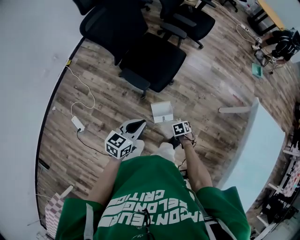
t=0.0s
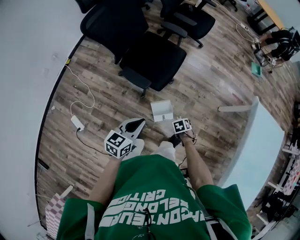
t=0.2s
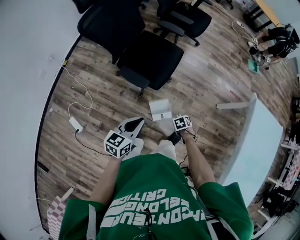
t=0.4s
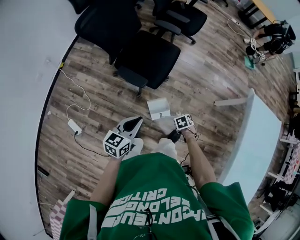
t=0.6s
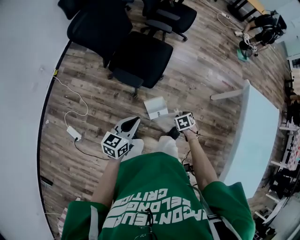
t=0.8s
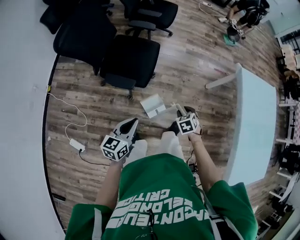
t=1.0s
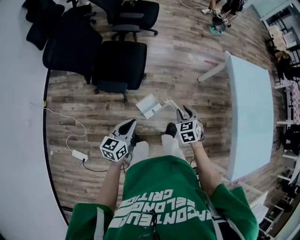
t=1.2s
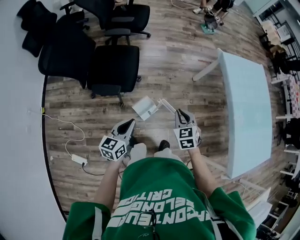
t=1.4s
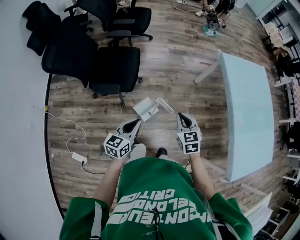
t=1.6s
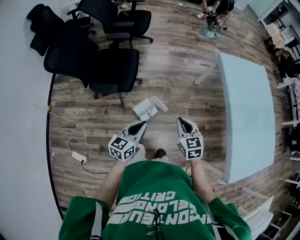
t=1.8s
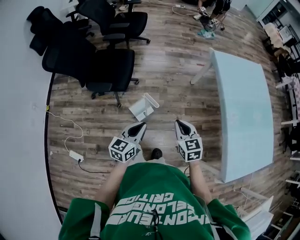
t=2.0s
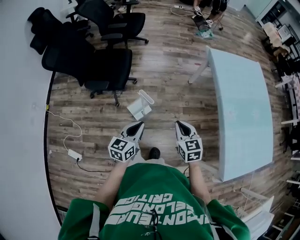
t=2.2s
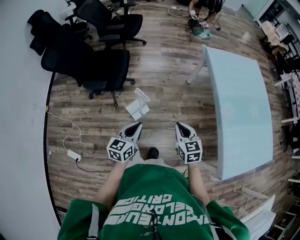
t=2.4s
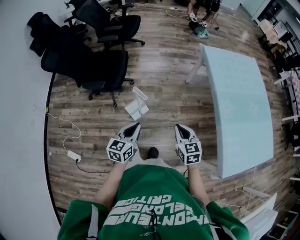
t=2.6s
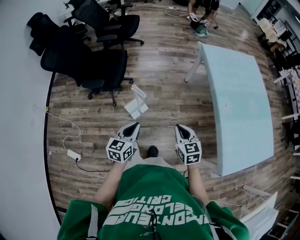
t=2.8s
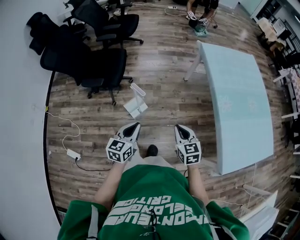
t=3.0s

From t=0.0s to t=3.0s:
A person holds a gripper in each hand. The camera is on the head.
From t=0.0s to t=1.6s: The left gripper moves roughly 10 cm; the right gripper goes approximately 30 cm upward, angles its fingers upward, by roughly 50 degrees, and closes up.
From t=1.6s to t=3.0s: The two grippers go about 25 cm to the right and backward.

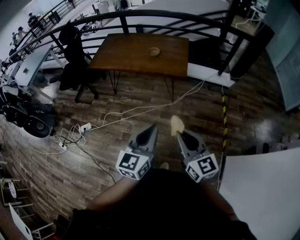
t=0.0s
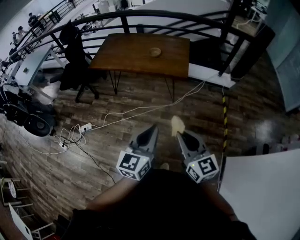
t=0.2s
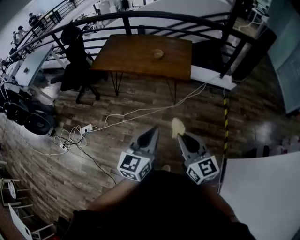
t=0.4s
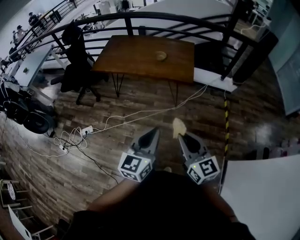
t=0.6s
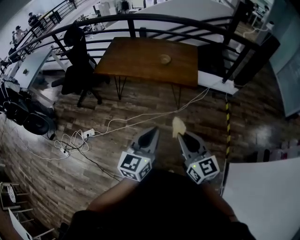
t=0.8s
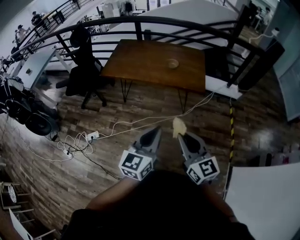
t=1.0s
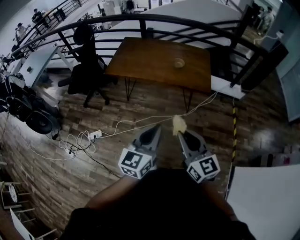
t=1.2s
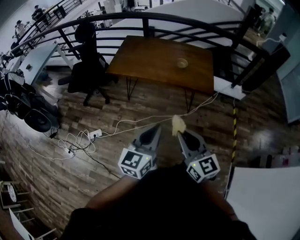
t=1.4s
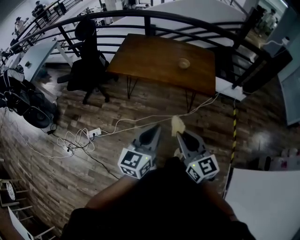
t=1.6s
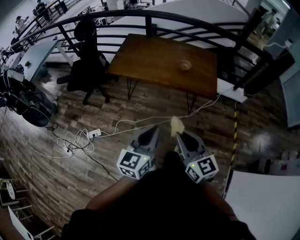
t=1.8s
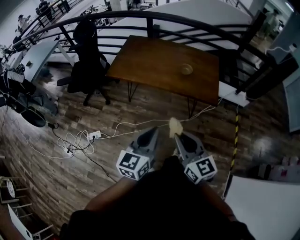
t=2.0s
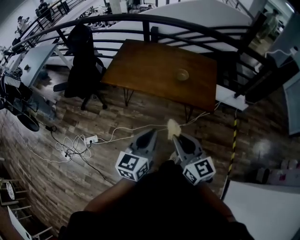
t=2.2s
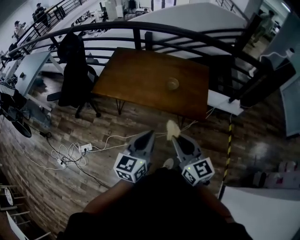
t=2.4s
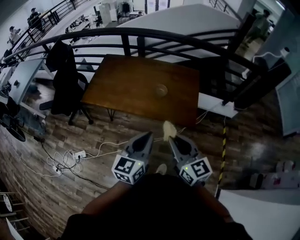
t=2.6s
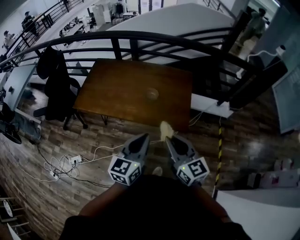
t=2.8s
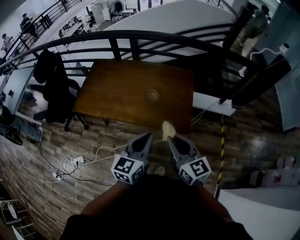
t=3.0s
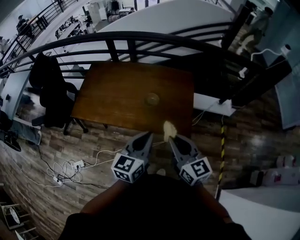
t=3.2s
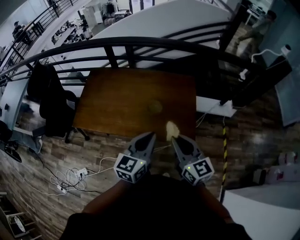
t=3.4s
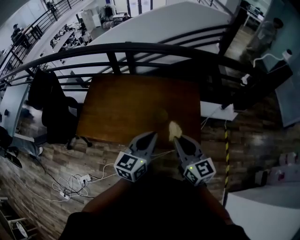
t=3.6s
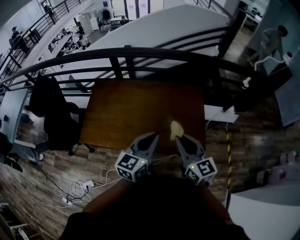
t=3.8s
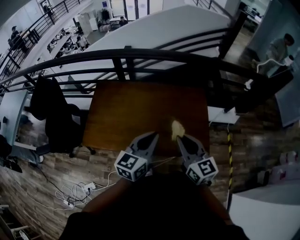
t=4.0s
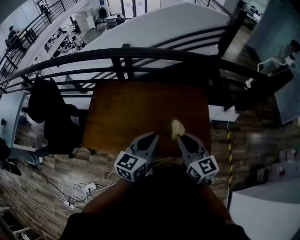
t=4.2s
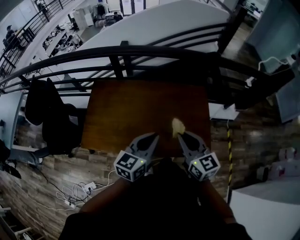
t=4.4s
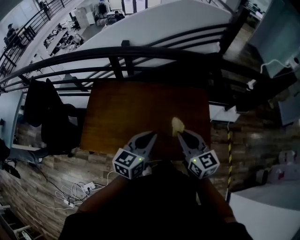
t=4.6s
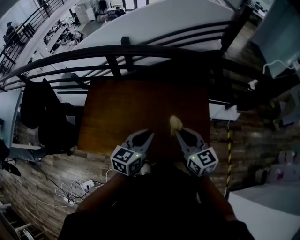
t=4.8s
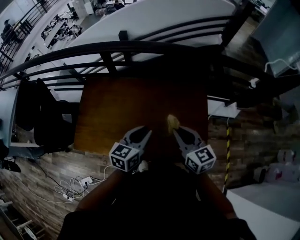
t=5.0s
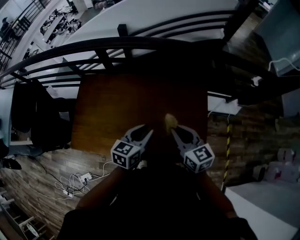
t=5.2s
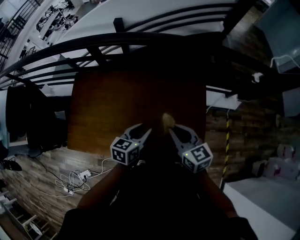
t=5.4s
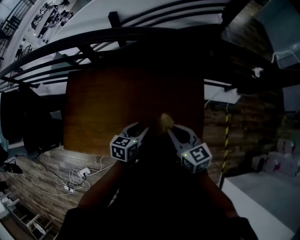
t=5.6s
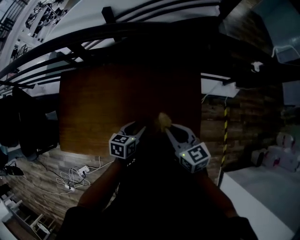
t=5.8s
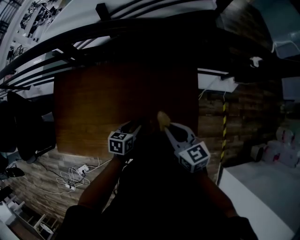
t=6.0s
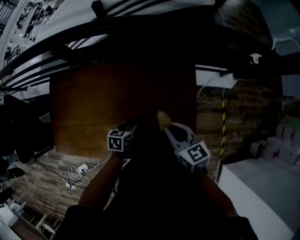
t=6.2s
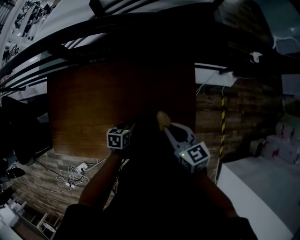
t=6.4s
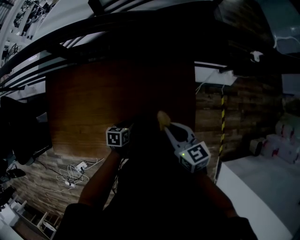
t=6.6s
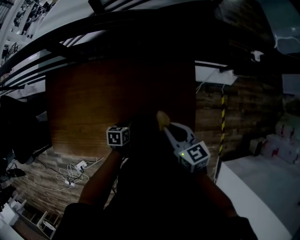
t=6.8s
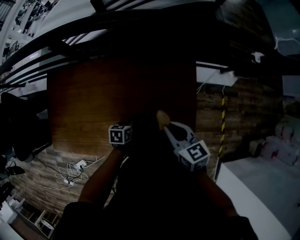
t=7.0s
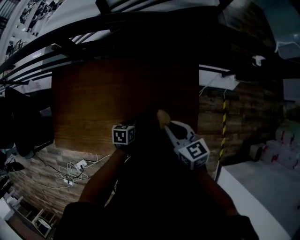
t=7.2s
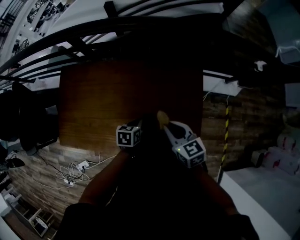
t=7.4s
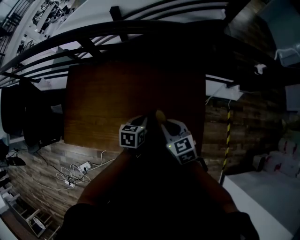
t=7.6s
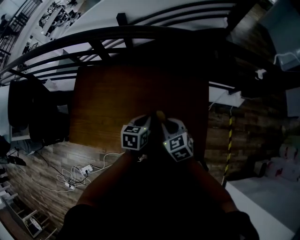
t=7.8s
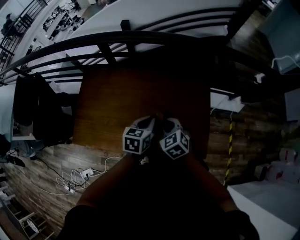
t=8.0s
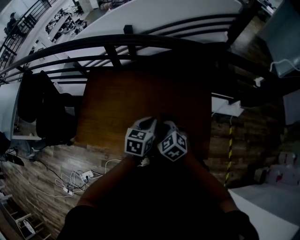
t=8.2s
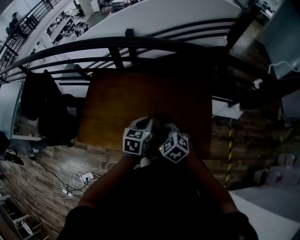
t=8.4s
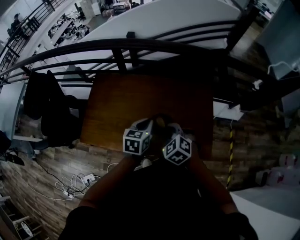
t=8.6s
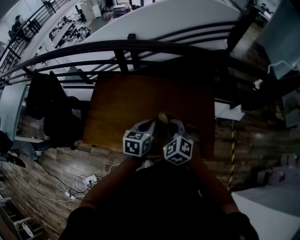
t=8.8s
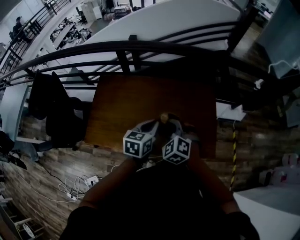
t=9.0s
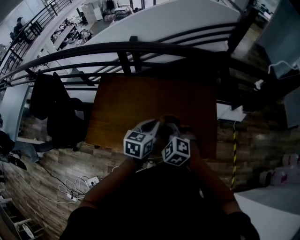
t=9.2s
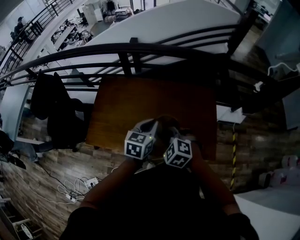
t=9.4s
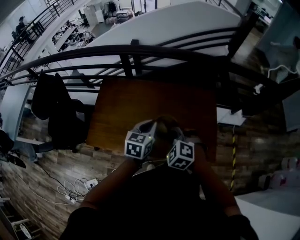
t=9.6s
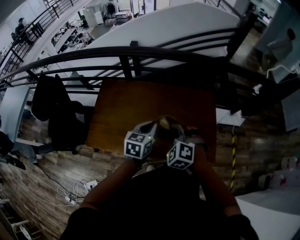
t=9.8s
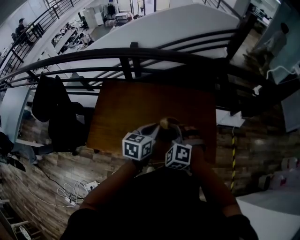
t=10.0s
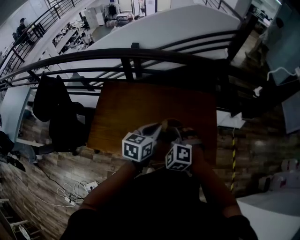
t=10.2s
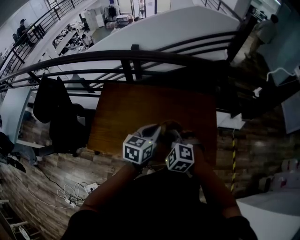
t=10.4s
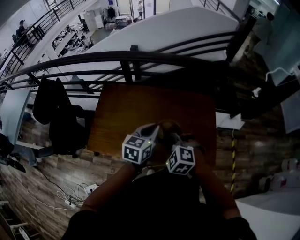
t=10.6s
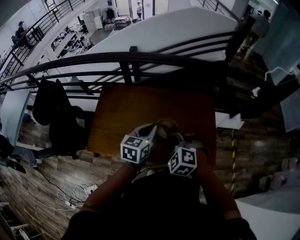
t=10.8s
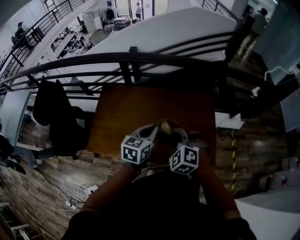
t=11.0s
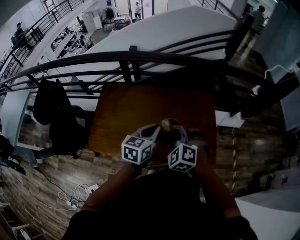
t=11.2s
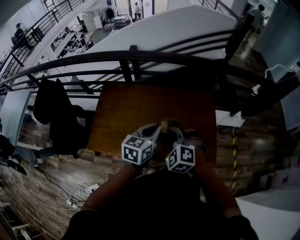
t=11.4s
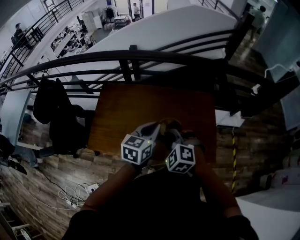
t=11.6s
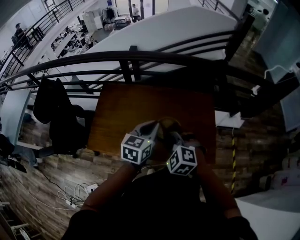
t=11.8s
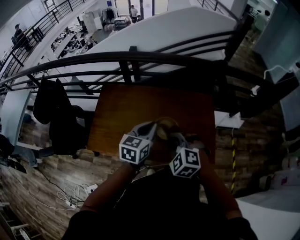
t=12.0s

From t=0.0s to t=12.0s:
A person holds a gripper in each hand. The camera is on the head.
From t=0.0s to t=1.6s: The two grippers go about 30 cm to the left and forward.
From t=1.6s to t=3.0s: The grippers both shift forward and to the right by about 40 cm.
From t=3.0s to t=4.4s: Both grippers move forward and to the left, about 30 cm.
From t=4.4s to t=6.0s: The left gripper shifts roughly 35 cm downward and forward, tips its fingers downward by roughly 40 degrees, and opens its fingers, while the right gripper goes roughly 25 cm forward, downward and to the right, and turns by approximately 20 degrees.
From t=6.0s to t=7.6s: The left gripper is displaced upward by approximately 5 cm, and closes up; the right gripper goes approximately 5 cm to the left.
From t=7.6s to t=9.0s: The right gripper moves to the left, upward and backward, some 20 cm, and rotates around the line of its fingers by some 40 degrees, counterclockwise from behind. The left gripper heads upward, backward and to the left, covering some 20 cm, and turns by roughly 20 degrees.
From t=9.0s to t=10.4s: The right gripper shifts by about 5 cm.
From t=10.4s to t=12.0s: There are only small adjustments of the grippers.

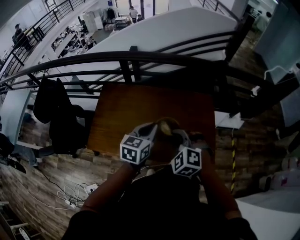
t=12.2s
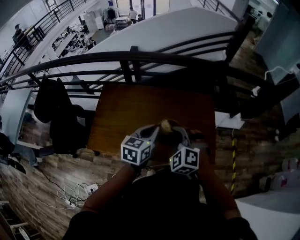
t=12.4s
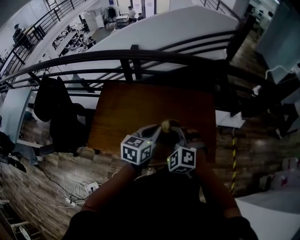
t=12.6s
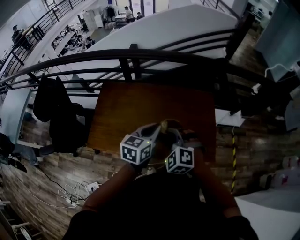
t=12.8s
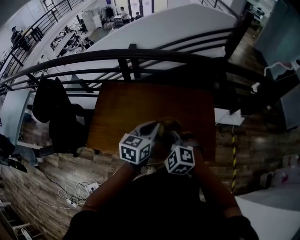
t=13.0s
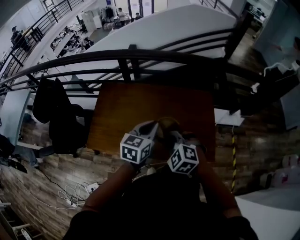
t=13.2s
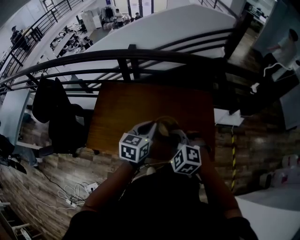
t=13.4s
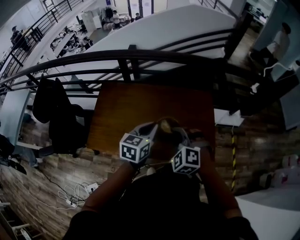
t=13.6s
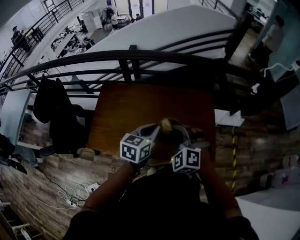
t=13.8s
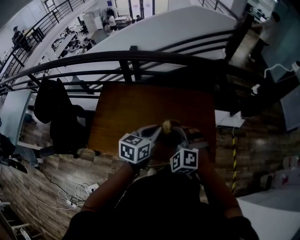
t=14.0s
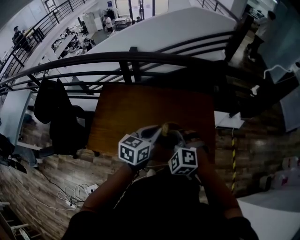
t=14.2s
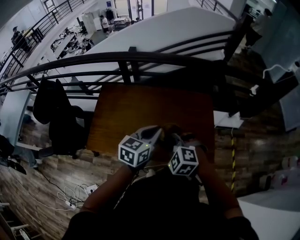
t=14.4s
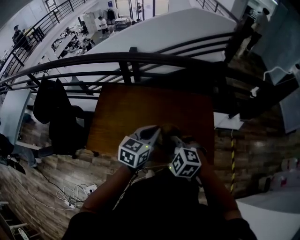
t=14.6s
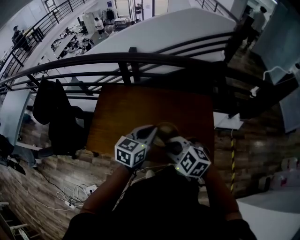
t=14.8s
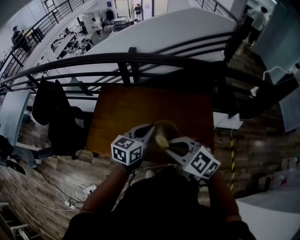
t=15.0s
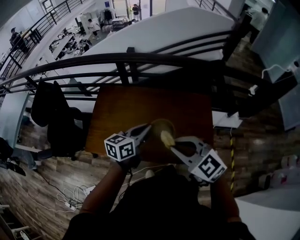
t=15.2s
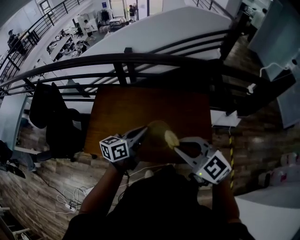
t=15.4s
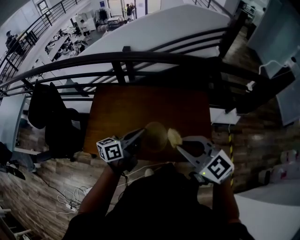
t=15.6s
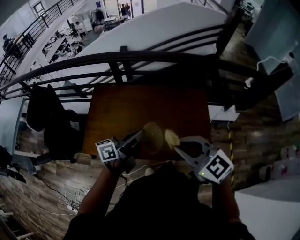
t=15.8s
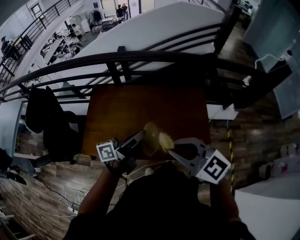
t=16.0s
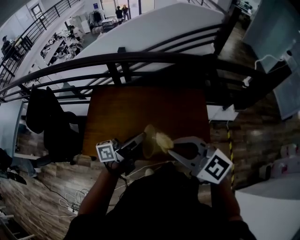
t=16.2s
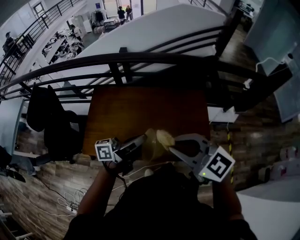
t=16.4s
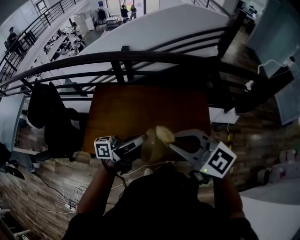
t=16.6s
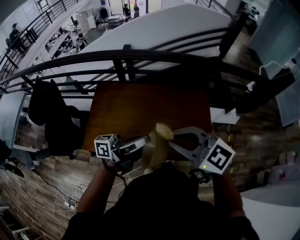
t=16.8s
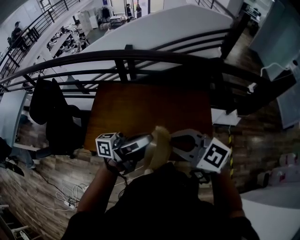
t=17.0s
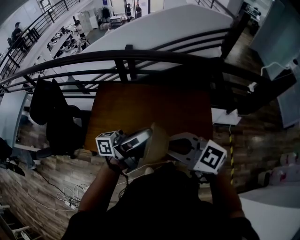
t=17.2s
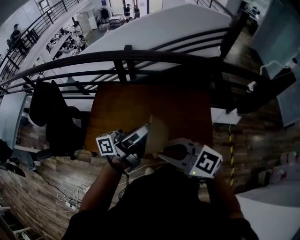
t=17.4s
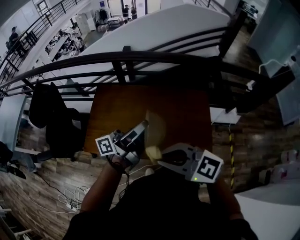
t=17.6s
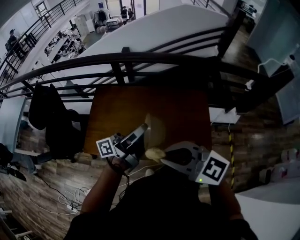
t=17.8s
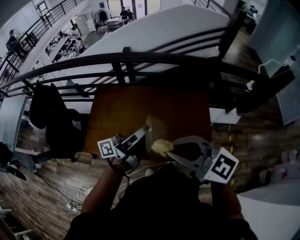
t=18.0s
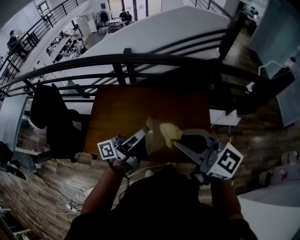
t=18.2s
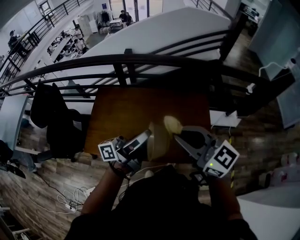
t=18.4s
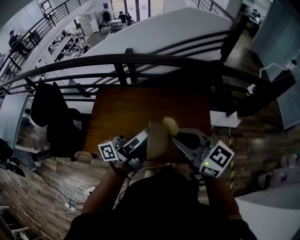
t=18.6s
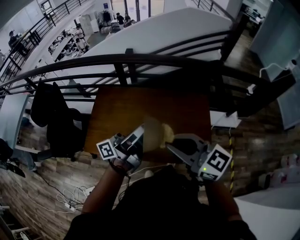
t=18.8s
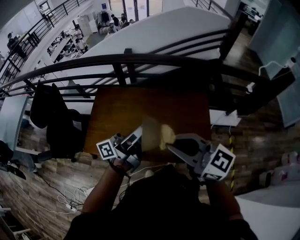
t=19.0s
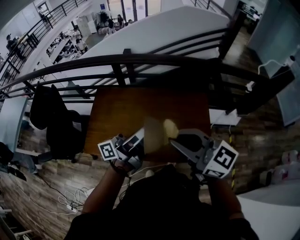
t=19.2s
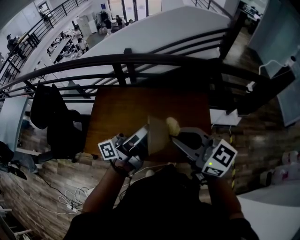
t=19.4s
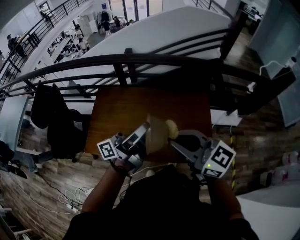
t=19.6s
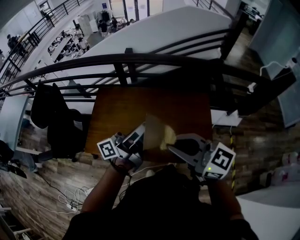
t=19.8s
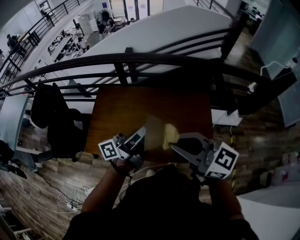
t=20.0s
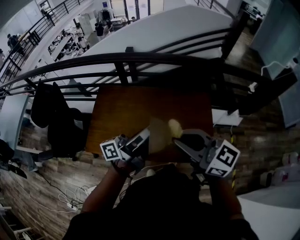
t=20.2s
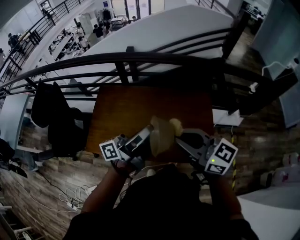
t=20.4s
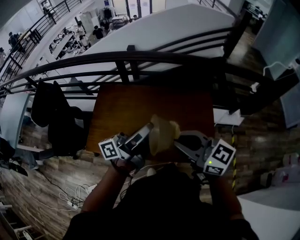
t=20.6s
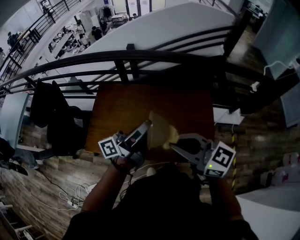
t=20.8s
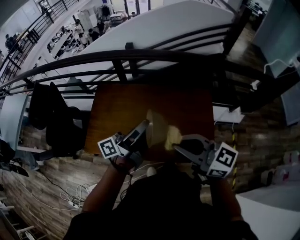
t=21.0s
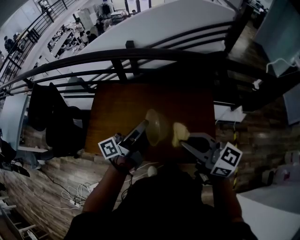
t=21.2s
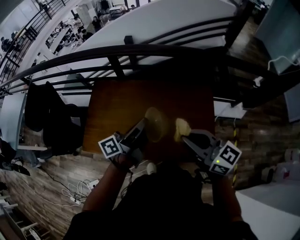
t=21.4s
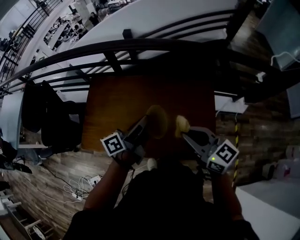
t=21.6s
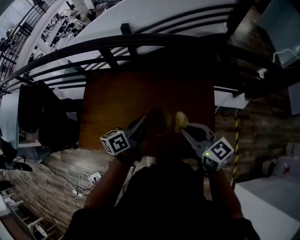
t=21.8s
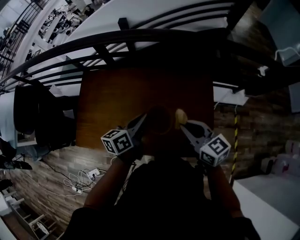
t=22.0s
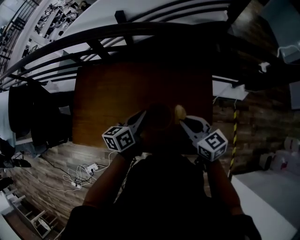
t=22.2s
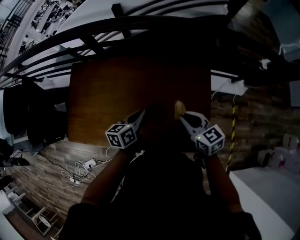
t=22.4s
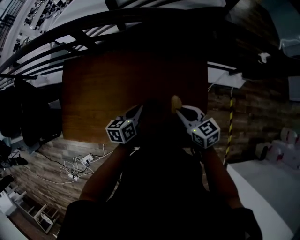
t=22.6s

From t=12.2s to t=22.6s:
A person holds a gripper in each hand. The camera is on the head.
From t=12.2s to t=13.6s: The grippers make only small movements.
From t=13.6s to t=15.2s: The right gripper heads upward and backward, covering approximately 10 cm, and rotates some 40 degrees.
From t=15.2s to t=16.6s: The right gripper travels upward by about 5 cm. The left gripper ends up roughly 10 cm from where it was, and tips its fingers upward by roughly 30 degrees.
From t=18.2s to t=19.6s: The grippers stay close to where they were, moving slightly.
From t=19.6s to t=21.2s: The left gripper heads downward and forward, covering roughly 10 cm. The right gripper shifts roughly 5 cm to the right.
From t=21.2s to t=22.6s: The right gripper goes roughly 35 cm downward, to the right and forward, and points its fingers approximately 30 degrees further downward; the left gripper is displaced downward and to the right by approximately 30 cm, and angles its fingers downward, by roughly 50 degrees.
